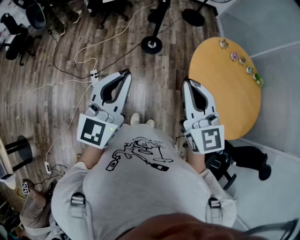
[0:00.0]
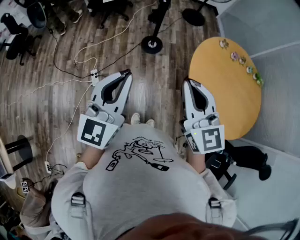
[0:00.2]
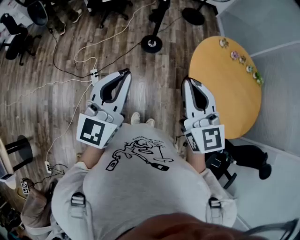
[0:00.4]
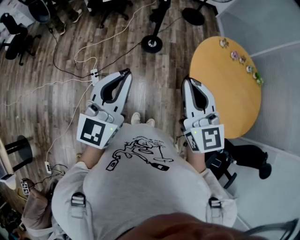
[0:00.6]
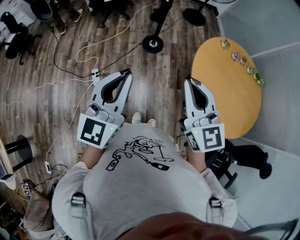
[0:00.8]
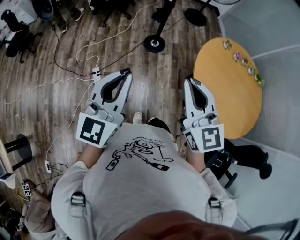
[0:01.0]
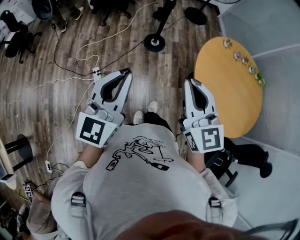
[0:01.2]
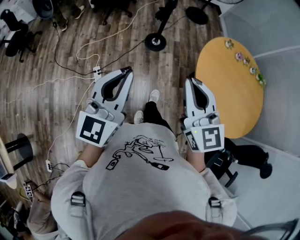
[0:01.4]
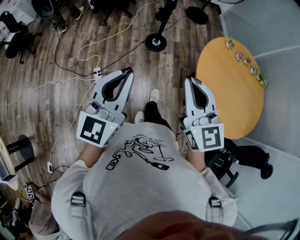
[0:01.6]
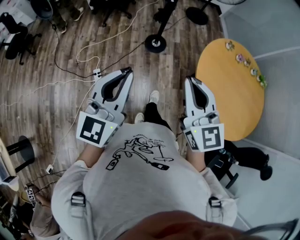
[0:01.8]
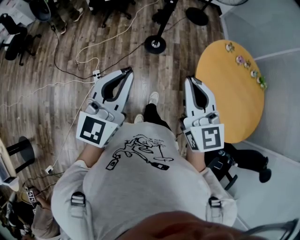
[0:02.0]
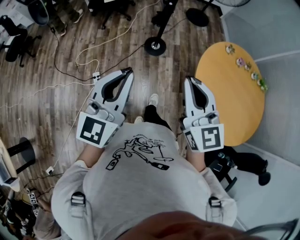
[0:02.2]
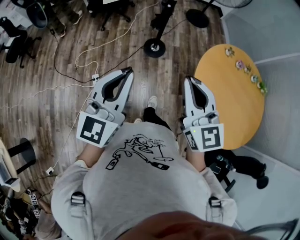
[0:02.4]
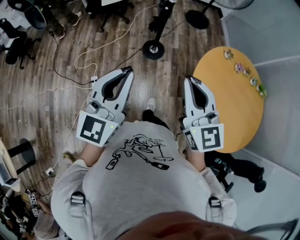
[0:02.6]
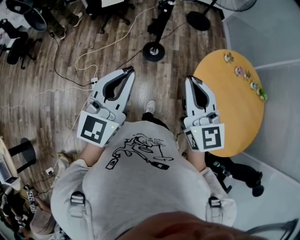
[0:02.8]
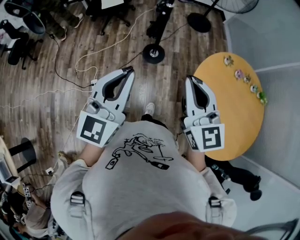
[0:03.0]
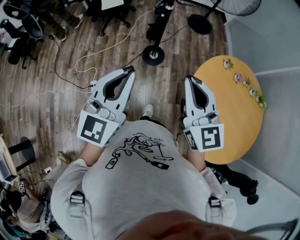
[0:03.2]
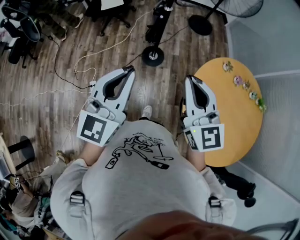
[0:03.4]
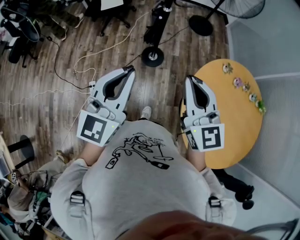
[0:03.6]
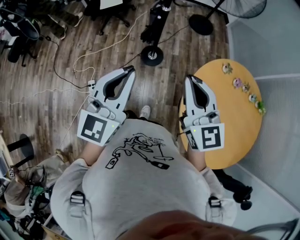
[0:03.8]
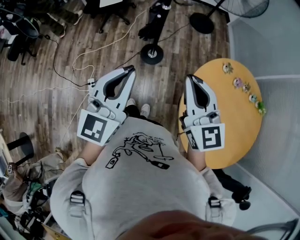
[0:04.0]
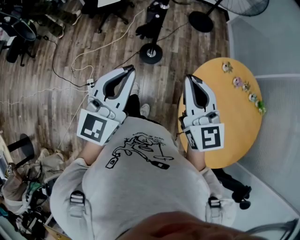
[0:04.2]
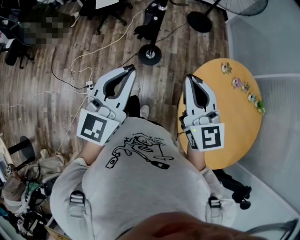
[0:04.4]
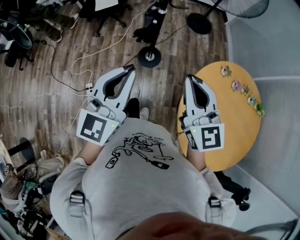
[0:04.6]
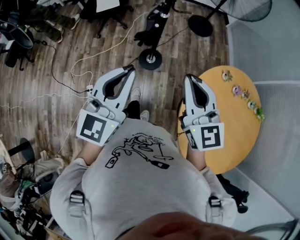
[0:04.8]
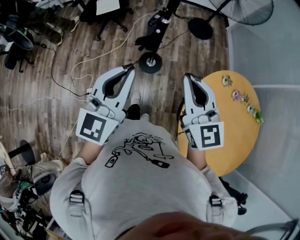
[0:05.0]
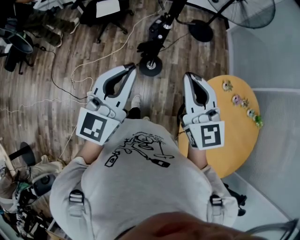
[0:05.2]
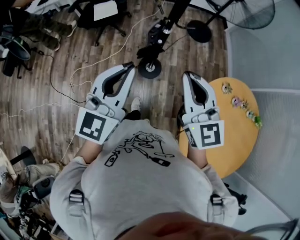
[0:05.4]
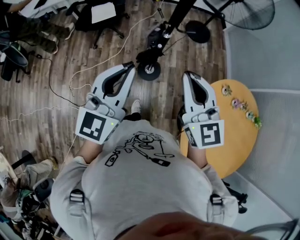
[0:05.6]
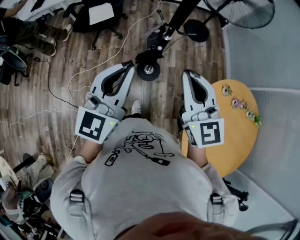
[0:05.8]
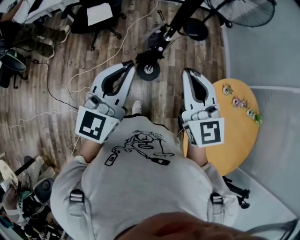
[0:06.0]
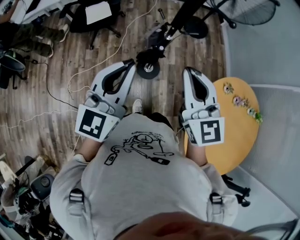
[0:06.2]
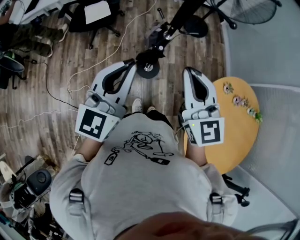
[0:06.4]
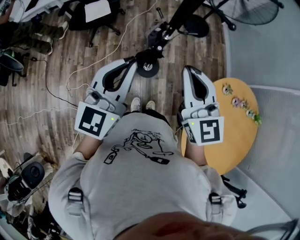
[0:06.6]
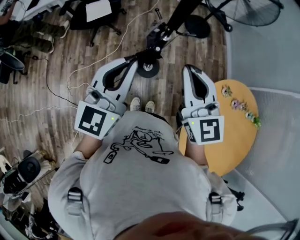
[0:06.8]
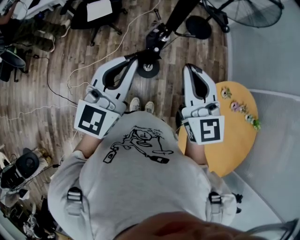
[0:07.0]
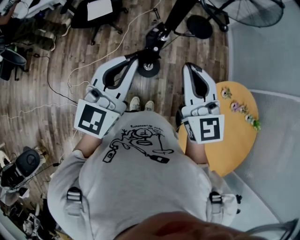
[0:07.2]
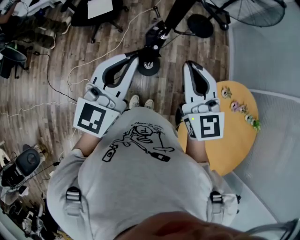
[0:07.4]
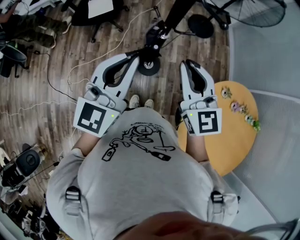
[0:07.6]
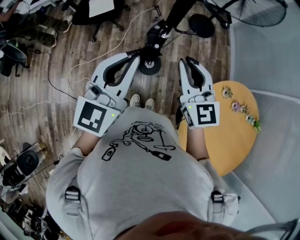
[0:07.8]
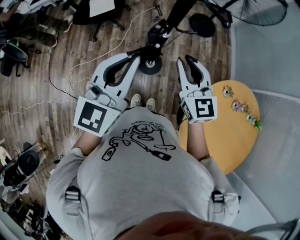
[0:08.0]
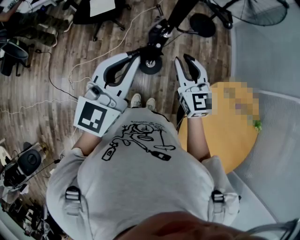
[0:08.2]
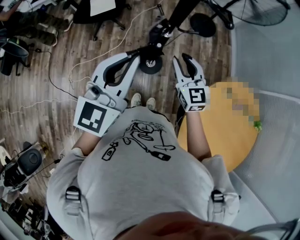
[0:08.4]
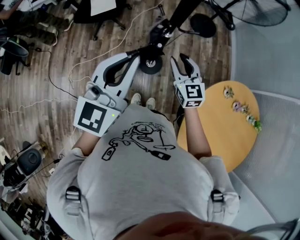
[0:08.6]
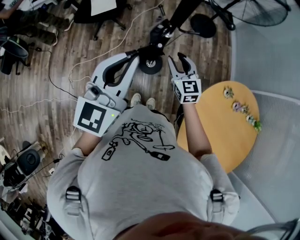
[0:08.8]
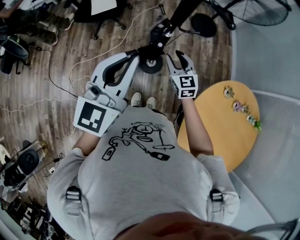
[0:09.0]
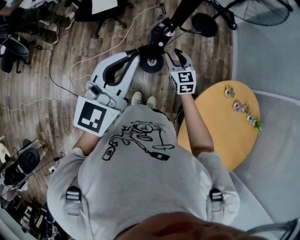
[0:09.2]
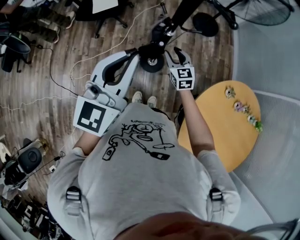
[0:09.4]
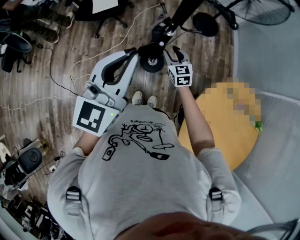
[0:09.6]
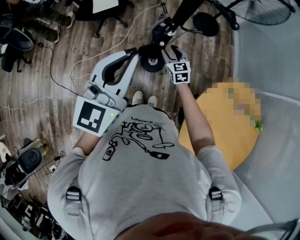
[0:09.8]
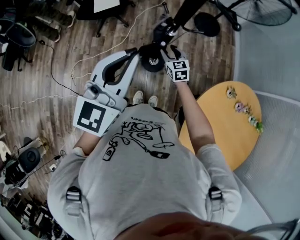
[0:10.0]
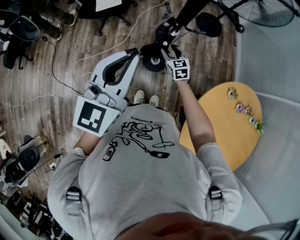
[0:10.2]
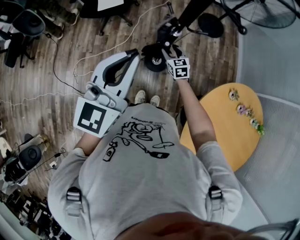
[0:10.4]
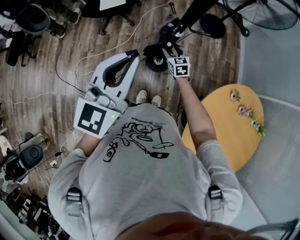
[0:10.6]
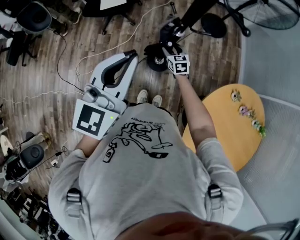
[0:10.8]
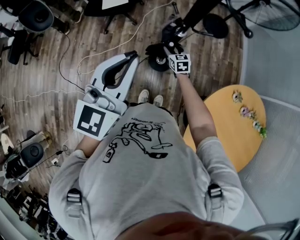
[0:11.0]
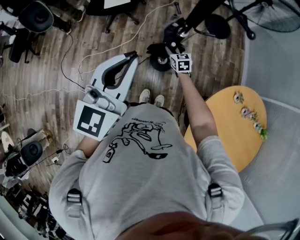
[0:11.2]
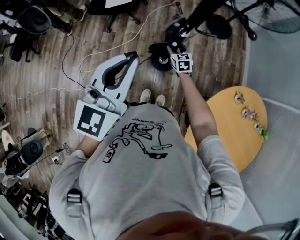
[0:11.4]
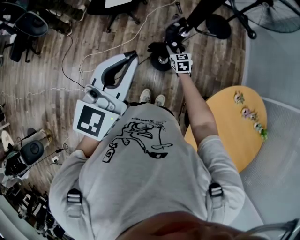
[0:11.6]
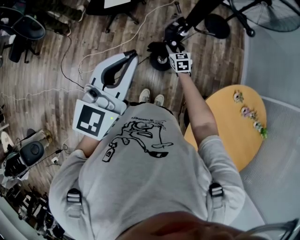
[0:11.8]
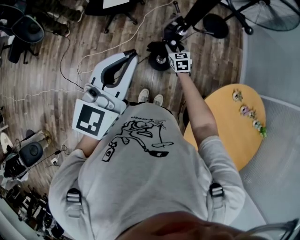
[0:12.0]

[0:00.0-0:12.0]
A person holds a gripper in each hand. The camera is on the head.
0:00.0 to 0:01.6: The right gripper goes approximately 5 cm to the left, while the left gripper ends up approximately 5 cm from where it was.
0:01.6 to 0:03.0: The grippers both shift forward and to the right by some 20 cm.
0:03.0 to 0:04.4: The two grippers go roughly 10 cm forward and to the right.
0:04.4 to 0:06.0: The two grippers go approximately 25 cm forward and to the left.
0:06.0 to 0:07.6: The right gripper heads forward, covering about 5 cm. Meanwhile the left gripper goes about 5 cm to the right.
0:07.6 to 0:09.0: The right gripper is displaced downward by about 20 cm, and opens its fingers.
0:09.0 to 0:10.4: The right gripper heads downward and forward, covering about 15 cm.
0:10.4 to 0:12.0: The grippers move only a little.

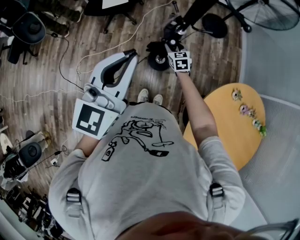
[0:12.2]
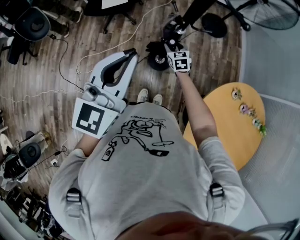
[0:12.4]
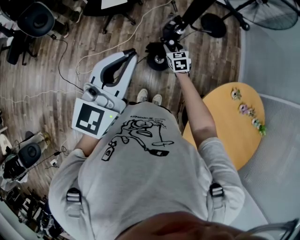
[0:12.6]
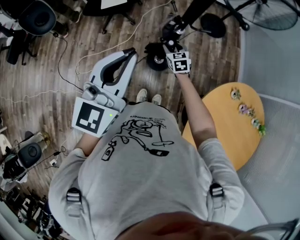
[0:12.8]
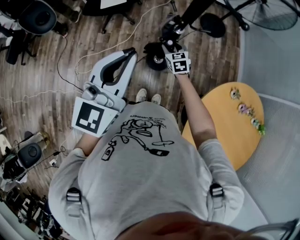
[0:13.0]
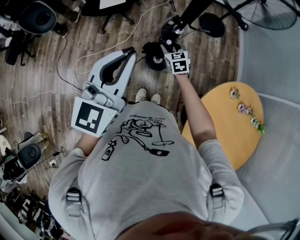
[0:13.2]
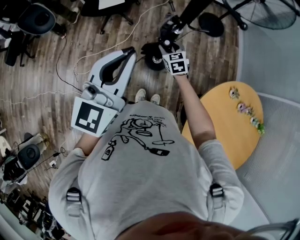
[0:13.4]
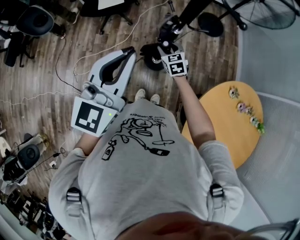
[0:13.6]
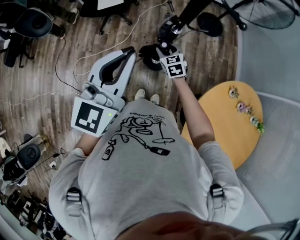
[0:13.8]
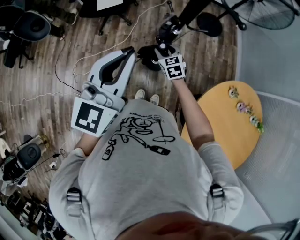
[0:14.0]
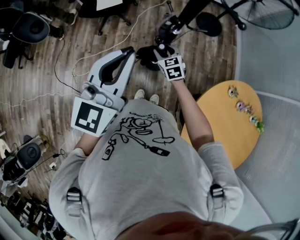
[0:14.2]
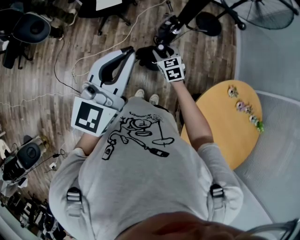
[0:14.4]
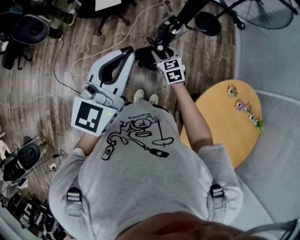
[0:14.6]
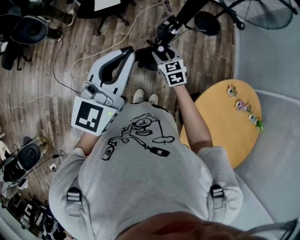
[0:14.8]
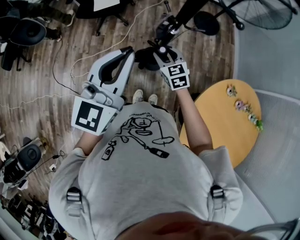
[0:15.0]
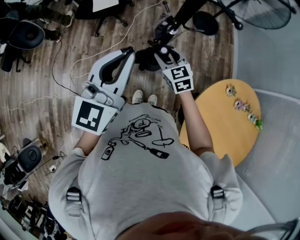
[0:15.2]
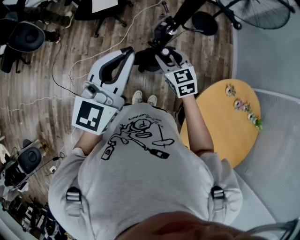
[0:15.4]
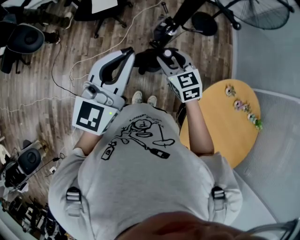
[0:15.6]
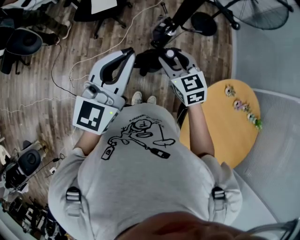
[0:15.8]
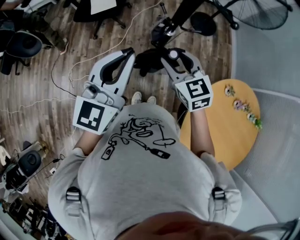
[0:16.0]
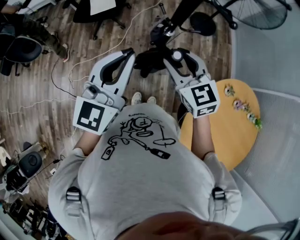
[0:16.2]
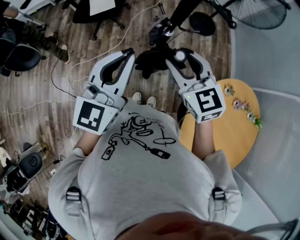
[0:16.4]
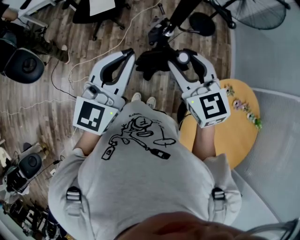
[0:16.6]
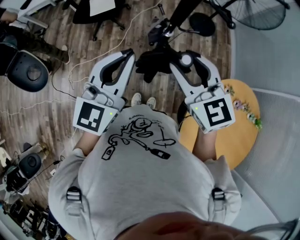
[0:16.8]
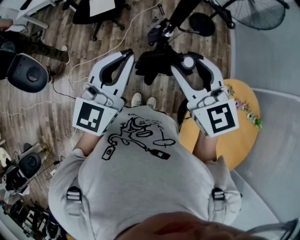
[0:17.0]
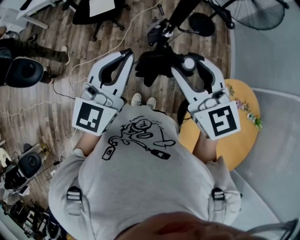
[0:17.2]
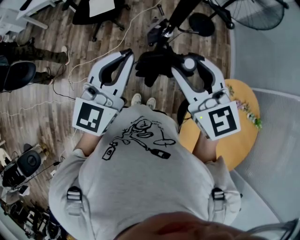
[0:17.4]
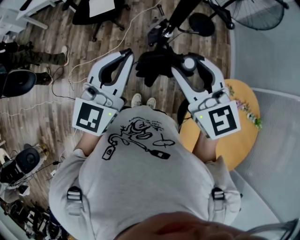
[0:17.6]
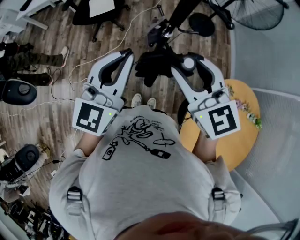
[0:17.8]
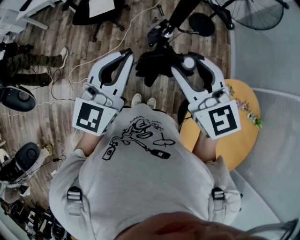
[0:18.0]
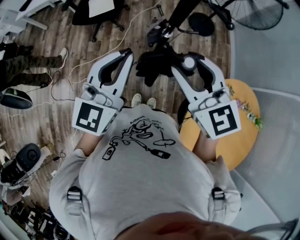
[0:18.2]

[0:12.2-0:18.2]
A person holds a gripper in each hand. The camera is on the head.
0:12.2 to 0:13.8: The right gripper is displaced upward by some 5 cm.
0:13.8 to 0:15.2: The right gripper is displaced upward by about 10 cm.
0:15.2 to 0:16.6: The right gripper goes roughly 20 cm upward.
0:16.6 to 0:18.2: The right gripper shifts approximately 5 cm upward.

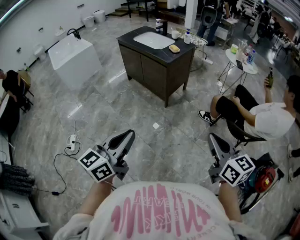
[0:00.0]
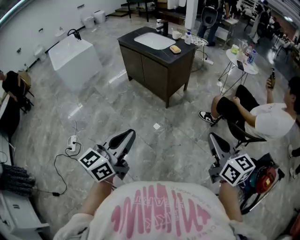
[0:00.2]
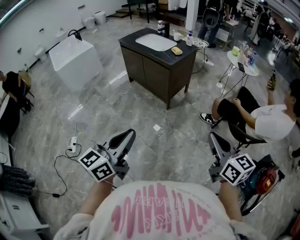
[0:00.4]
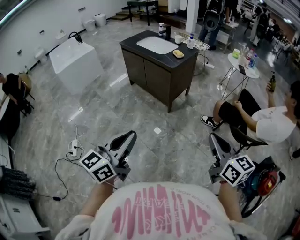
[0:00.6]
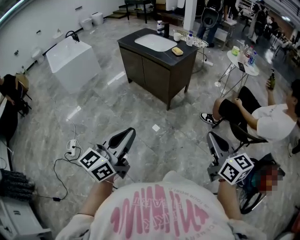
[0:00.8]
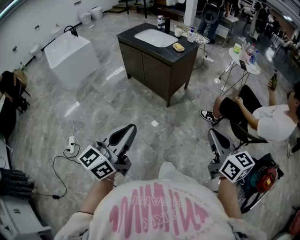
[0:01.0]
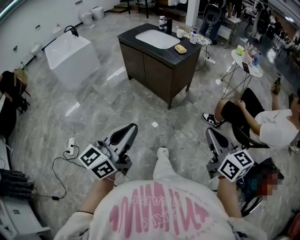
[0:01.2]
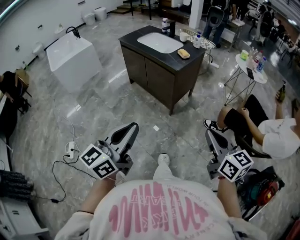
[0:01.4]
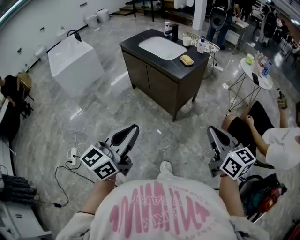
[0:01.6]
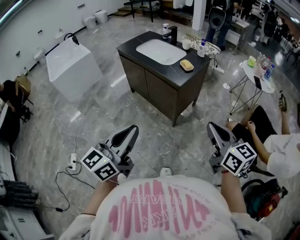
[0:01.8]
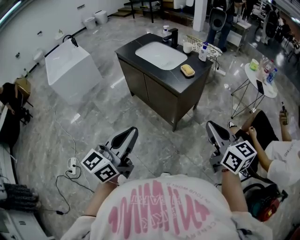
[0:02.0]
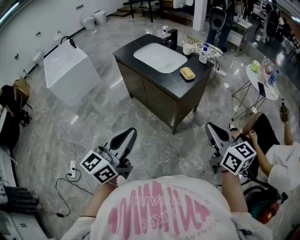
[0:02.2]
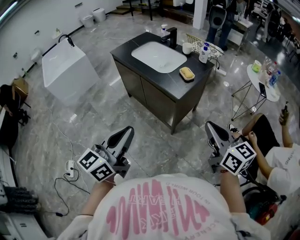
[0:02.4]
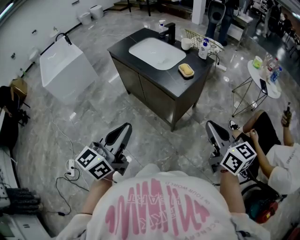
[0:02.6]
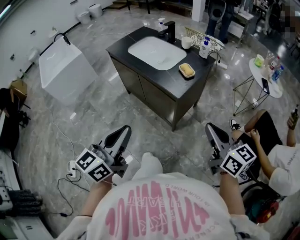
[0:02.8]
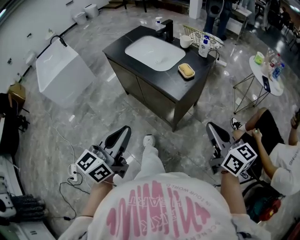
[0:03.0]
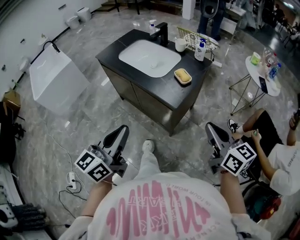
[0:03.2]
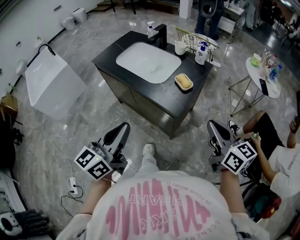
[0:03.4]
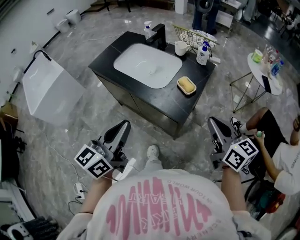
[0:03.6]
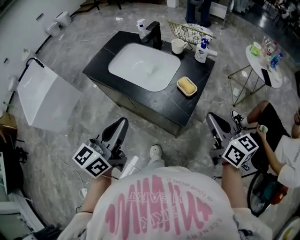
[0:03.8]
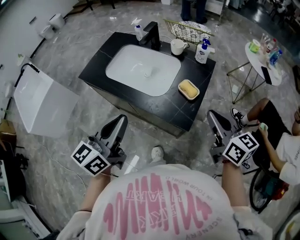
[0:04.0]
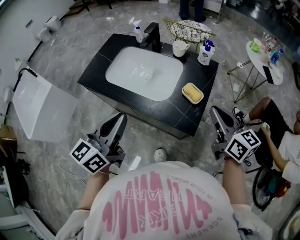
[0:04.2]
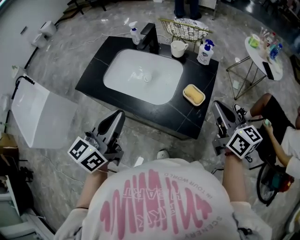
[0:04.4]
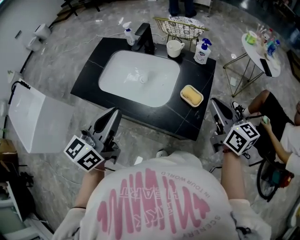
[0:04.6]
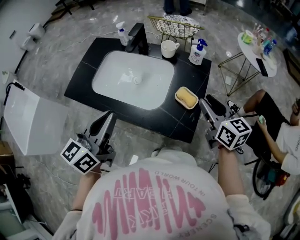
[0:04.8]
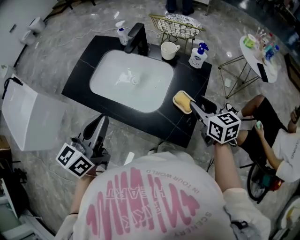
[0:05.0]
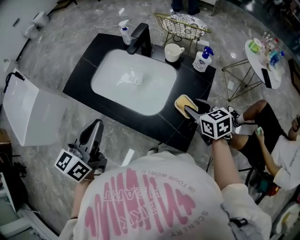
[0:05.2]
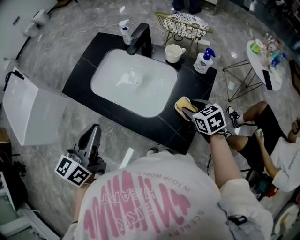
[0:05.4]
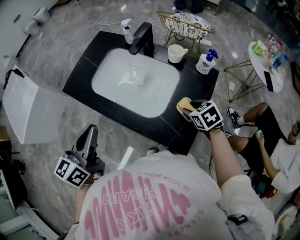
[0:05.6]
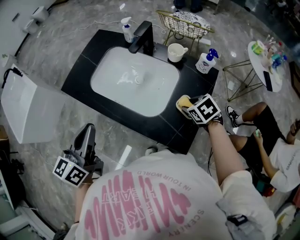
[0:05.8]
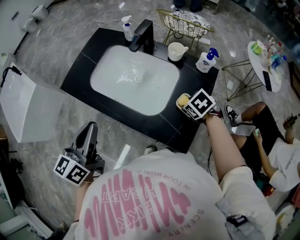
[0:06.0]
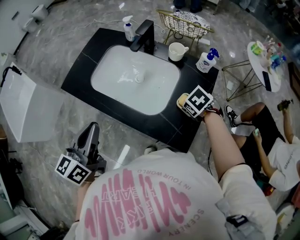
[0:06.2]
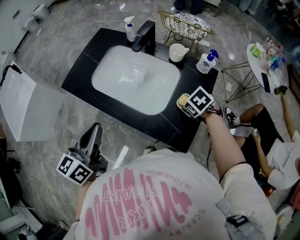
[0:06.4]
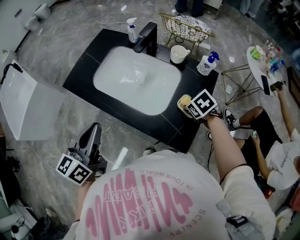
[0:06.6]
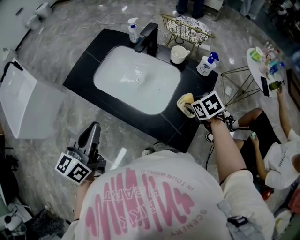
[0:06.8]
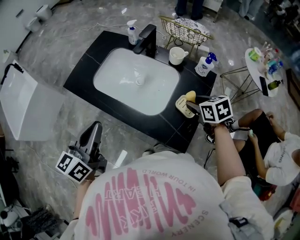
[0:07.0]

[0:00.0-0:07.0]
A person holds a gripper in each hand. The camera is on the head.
0:00.0 to 0:01.4: The left gripper shifts about 15 cm forward. The right gripper is displaced forward and to the left by roughly 15 cm.
0:01.4 to 0:02.8: The grippers both shift forward by approximately 30 cm.
0:02.8 to 0:04.2: The two grippers go approximately 30 cm forward.
0:04.2 to 0:05.6: The right gripper shifts some 25 cm downward and forward, angles its fingers downward, by roughly 50 degrees, and opens. Meanwhile the left gripper moves forward and to the left, approximately 10 cm.
0:05.6 to 0:07.0: The right gripper heads upward, covering approximately 5 cm.
